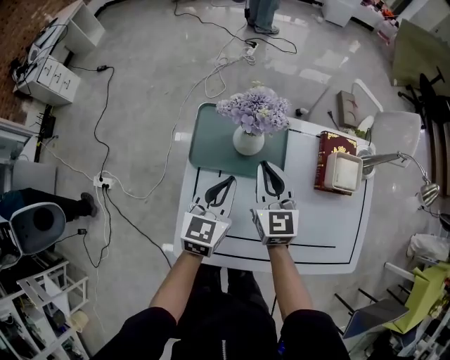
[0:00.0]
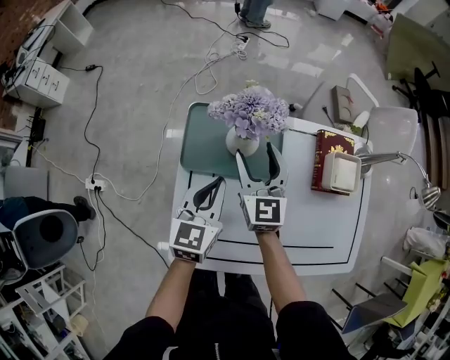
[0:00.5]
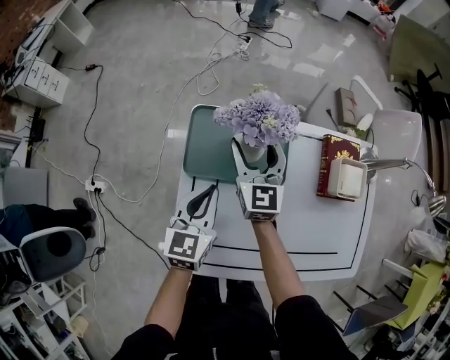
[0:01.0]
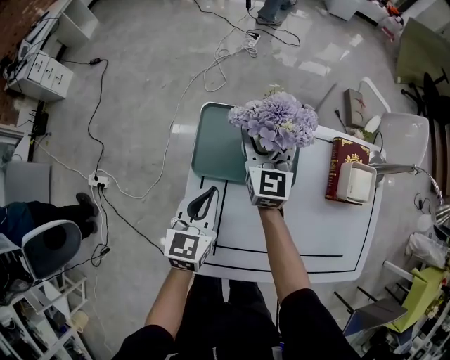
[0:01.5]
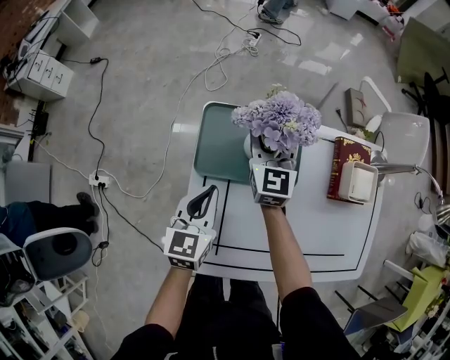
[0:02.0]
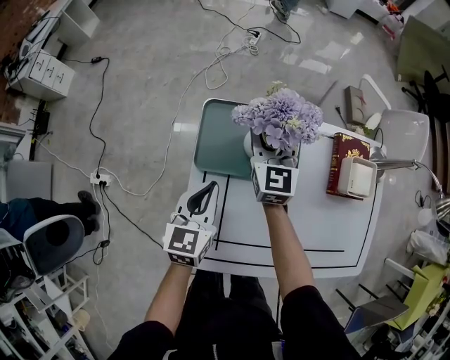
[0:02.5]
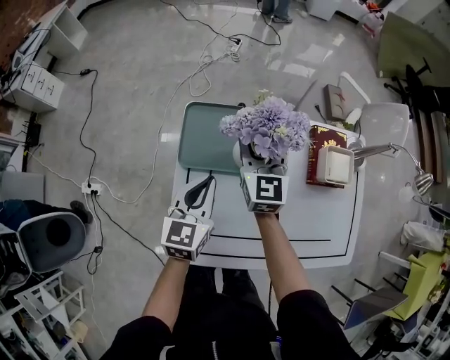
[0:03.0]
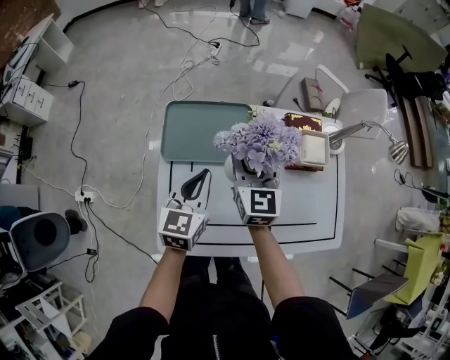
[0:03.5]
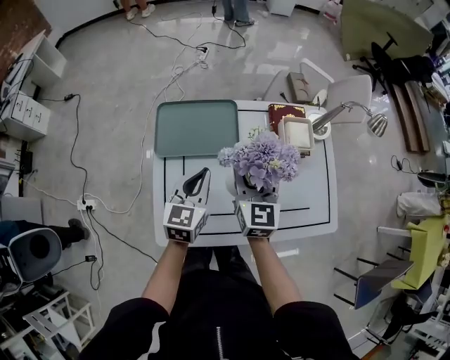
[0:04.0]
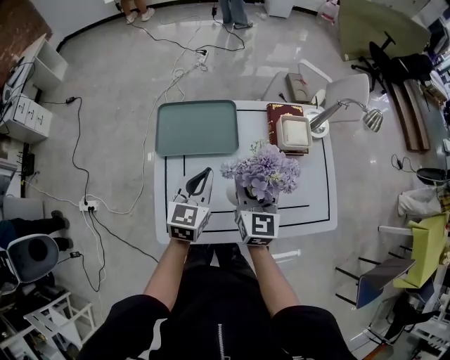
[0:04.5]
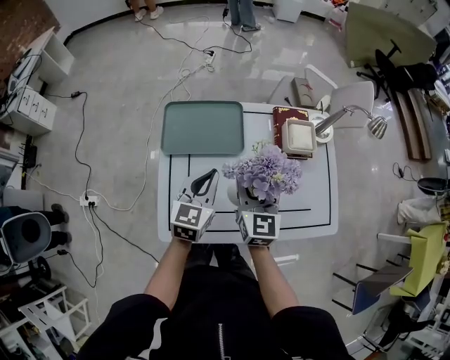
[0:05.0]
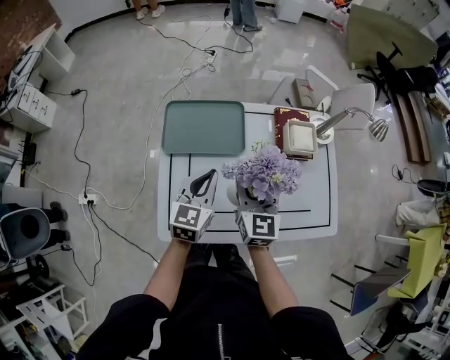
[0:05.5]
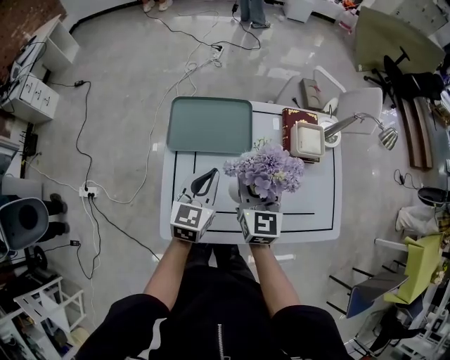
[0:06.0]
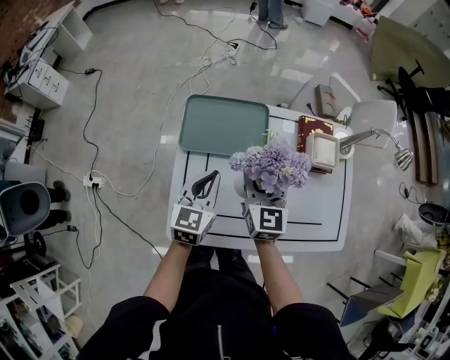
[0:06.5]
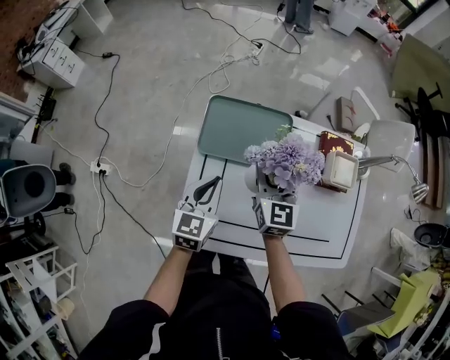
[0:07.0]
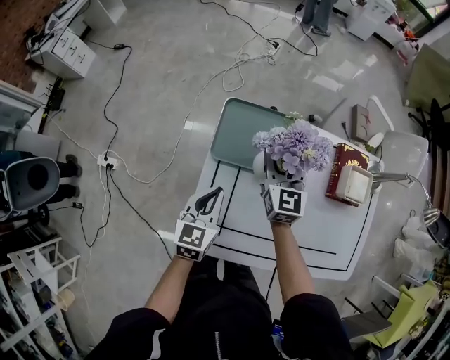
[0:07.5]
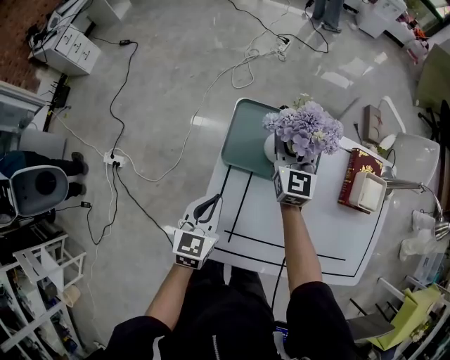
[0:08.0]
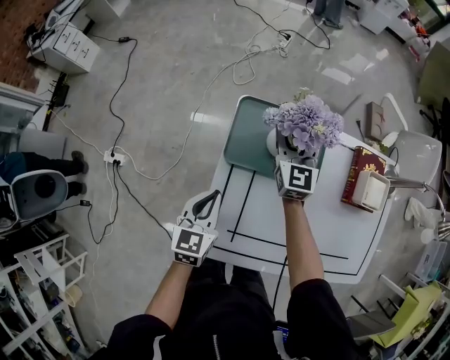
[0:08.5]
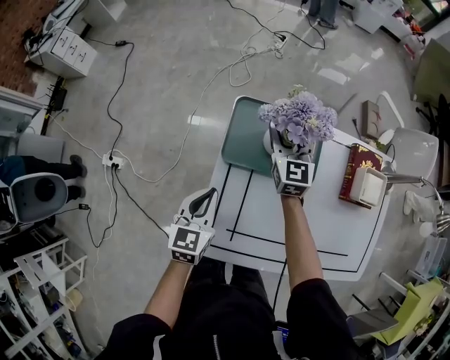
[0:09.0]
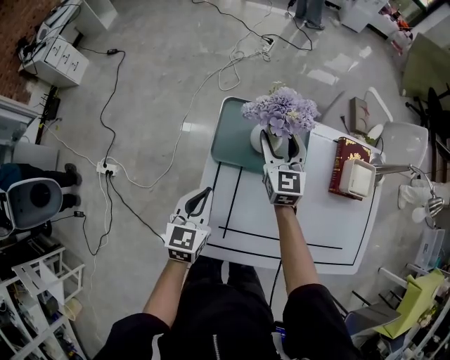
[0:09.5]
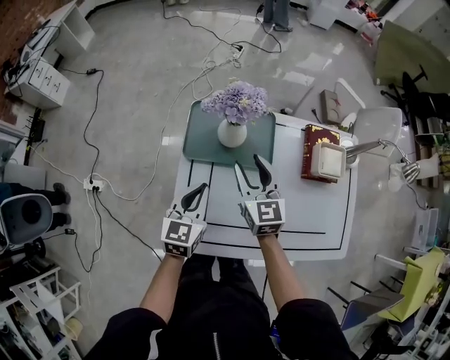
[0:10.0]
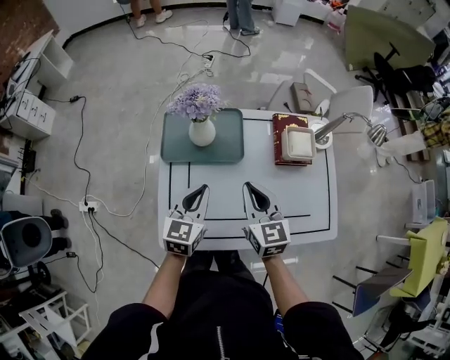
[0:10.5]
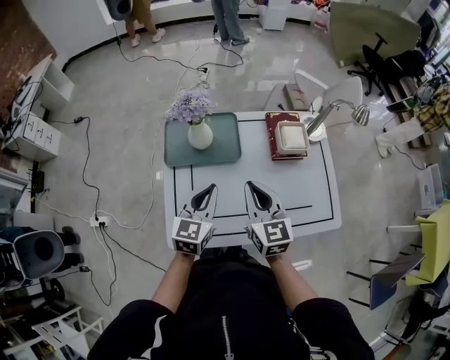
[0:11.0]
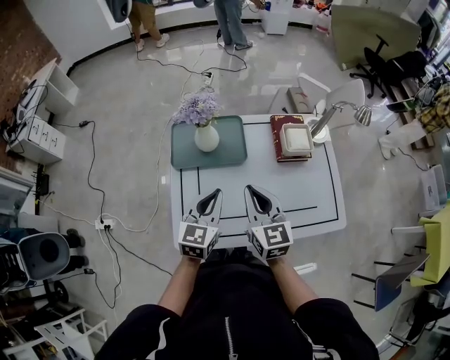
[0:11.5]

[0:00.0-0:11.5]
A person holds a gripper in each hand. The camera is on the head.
0:00.0 to 0:02.0: The right gripper heads forward and to the left, covering about 15 cm, and opens. The left gripper goes approximately 10 cm to the left.
0:02.0 to 0:04.0: The left gripper is displaced to the right, upward and backward by about 15 cm, while the right gripper is displaced backward, to the right and upward by approximately 30 cm.
0:04.0 to 0:06.0: There are only small adjustments of the grippers.
0:06.0 to 0:07.5: The right gripper is displaced forward and to the left by some 20 cm. The left gripper is displaced to the left and downward by about 15 cm.
0:09.5 to 0:11.5: The right gripper is displaced backward, to the right and upward by approximately 30 cm, and closes up. The left gripper shifts roughly 20 cm to the right and upward, and rotates about 20 degrees.

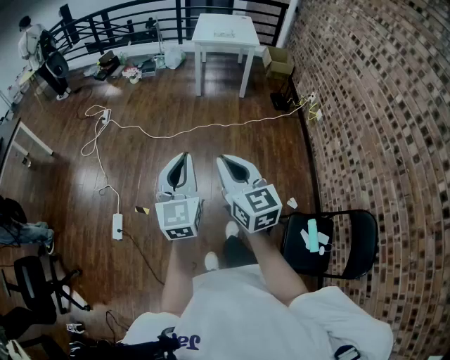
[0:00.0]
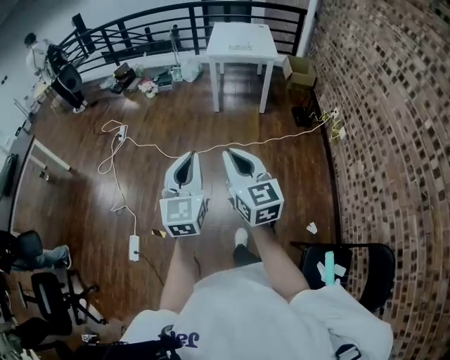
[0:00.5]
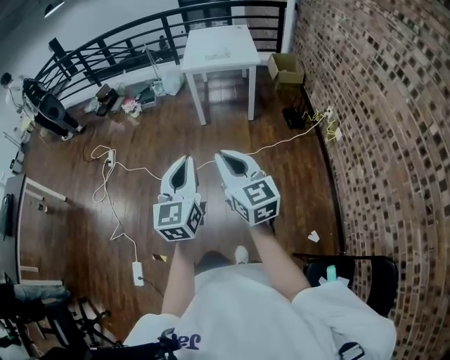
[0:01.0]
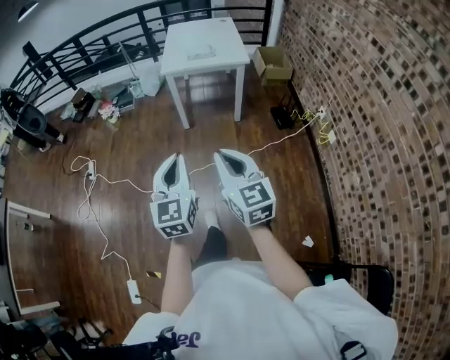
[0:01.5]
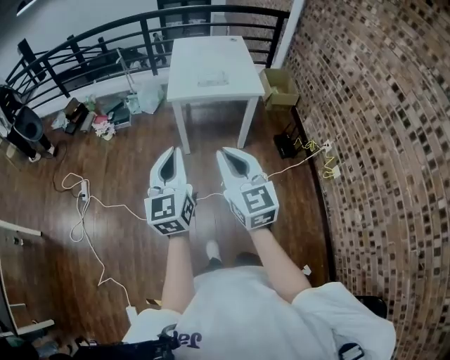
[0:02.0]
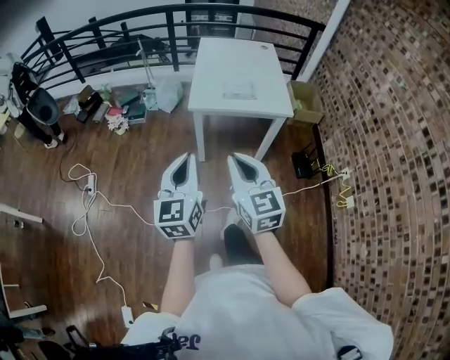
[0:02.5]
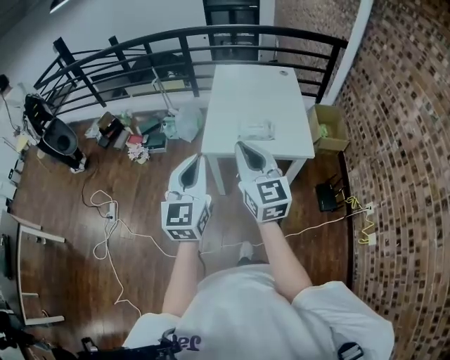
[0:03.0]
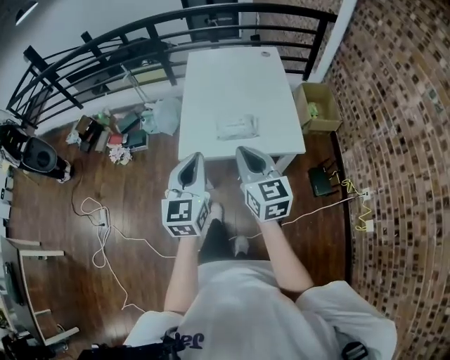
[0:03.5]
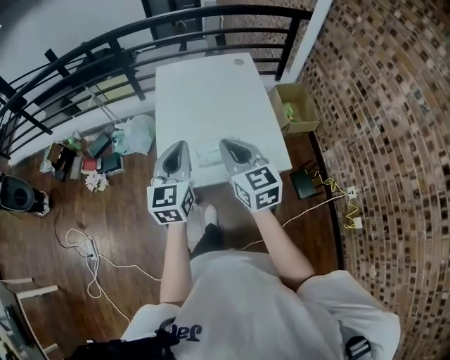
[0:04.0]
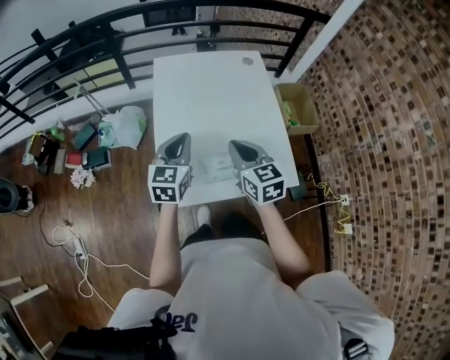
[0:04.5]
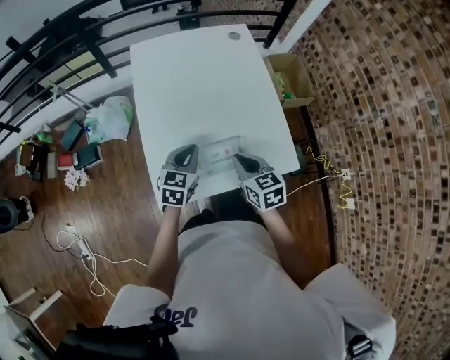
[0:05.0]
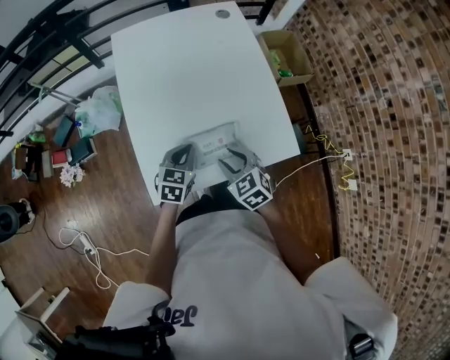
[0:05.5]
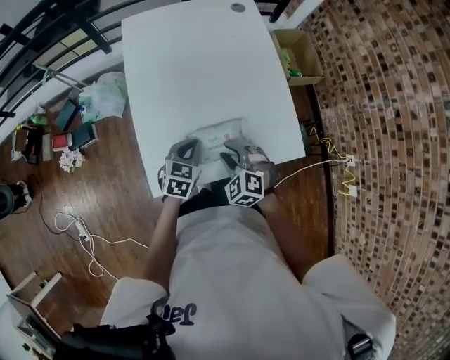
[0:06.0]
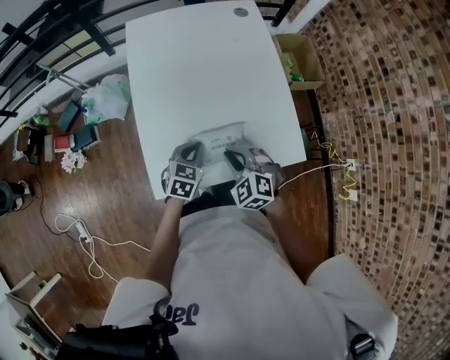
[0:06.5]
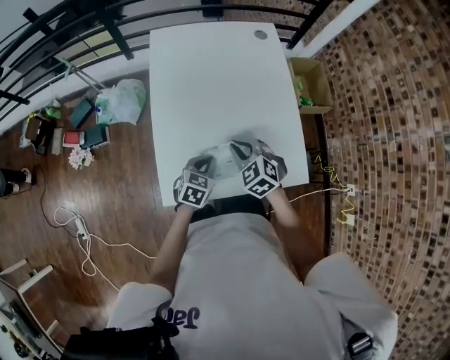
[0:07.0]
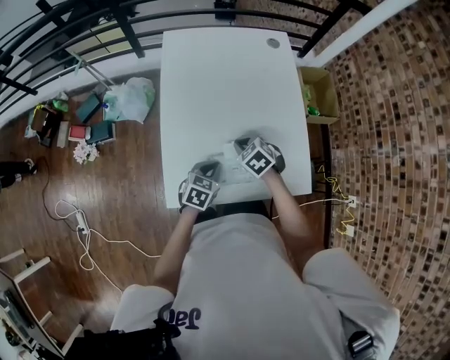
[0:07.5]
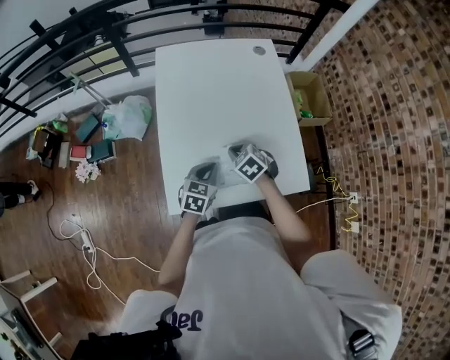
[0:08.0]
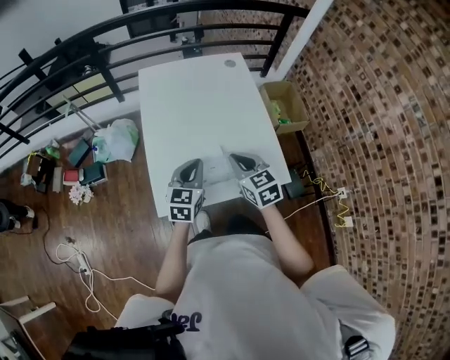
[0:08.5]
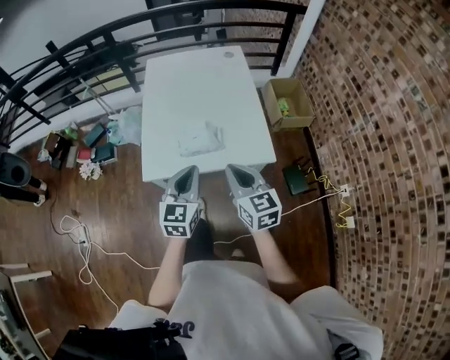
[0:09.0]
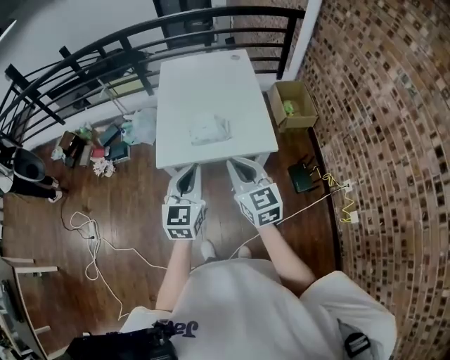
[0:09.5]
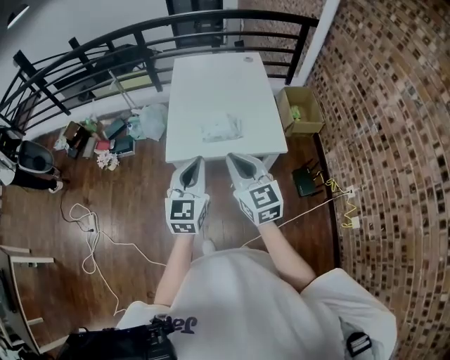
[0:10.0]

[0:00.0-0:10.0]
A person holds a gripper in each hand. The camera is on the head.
0:00.0 to 0:02.0: Both grippers are carried forward, some 80 cm.
0:02.0 to 0:04.0: The two grippers travel together, forward, about 60 cm.
0:04.0 to 0:06.0: The two grippers go approximately 30 cm downward. The left gripper points its fingers roughly 30 degrees further downward. The right gripper angles its fingers downward, by approximately 40 degrees, and opens.
0:06.0 to 0:08.0: The right gripper heads forward, covering approximately 10 cm, swivels about 20 degrees, and closes.
0:08.0 to 0:10.0: Both grippers travel together backward and upward, approximately 40 cm. The left gripper turns by some 40 degrees. Meanwhile the right gripper angles its fingers upward, by roughly 50 degrees.

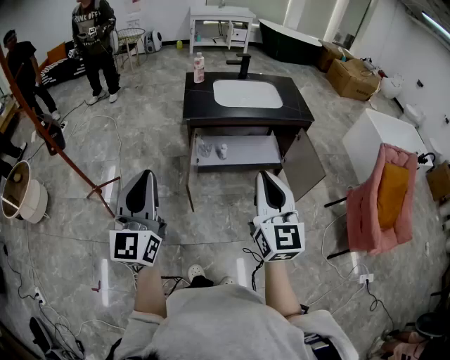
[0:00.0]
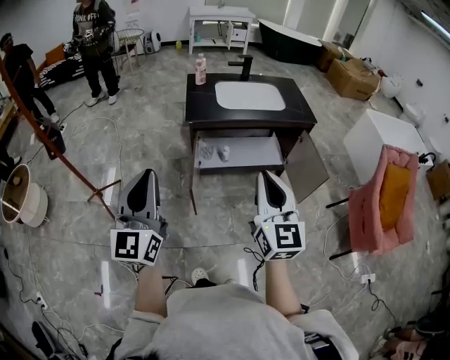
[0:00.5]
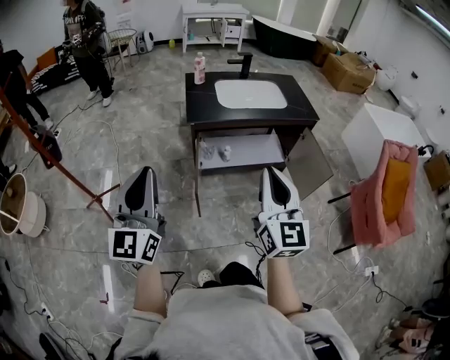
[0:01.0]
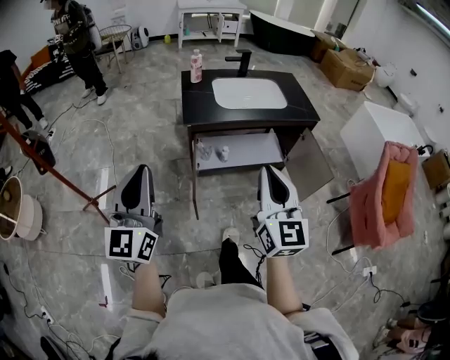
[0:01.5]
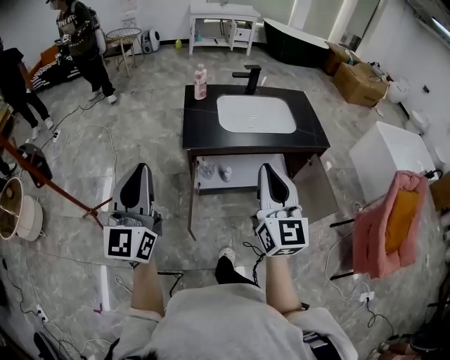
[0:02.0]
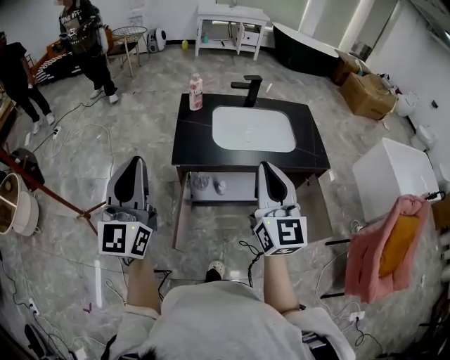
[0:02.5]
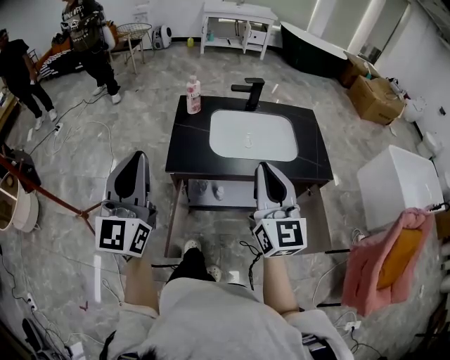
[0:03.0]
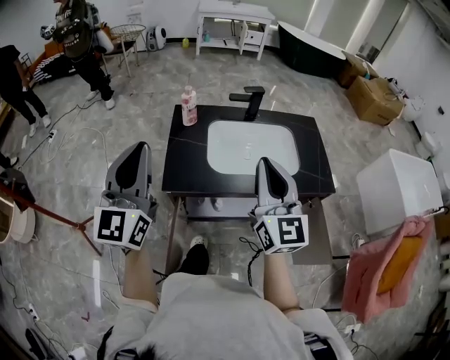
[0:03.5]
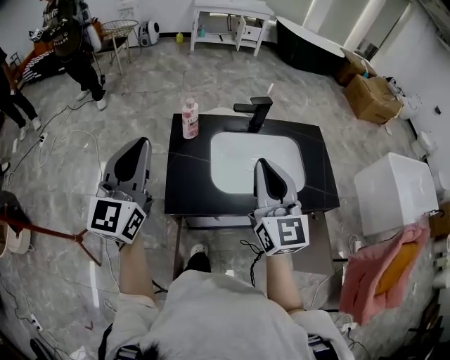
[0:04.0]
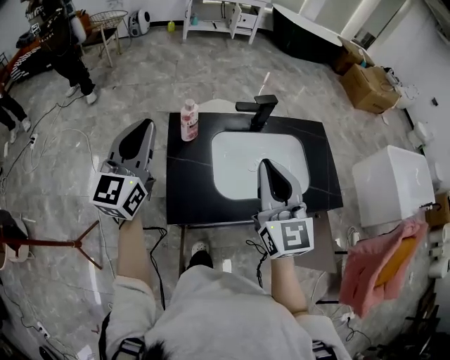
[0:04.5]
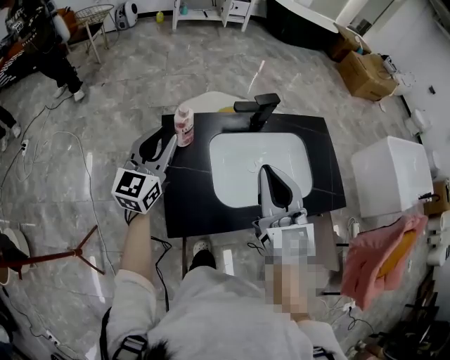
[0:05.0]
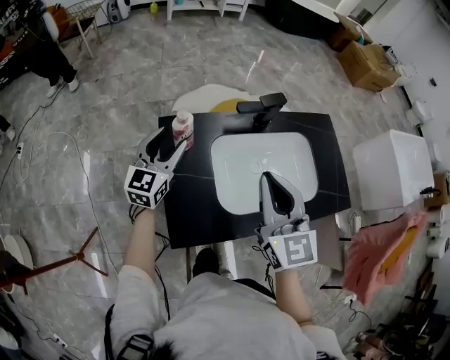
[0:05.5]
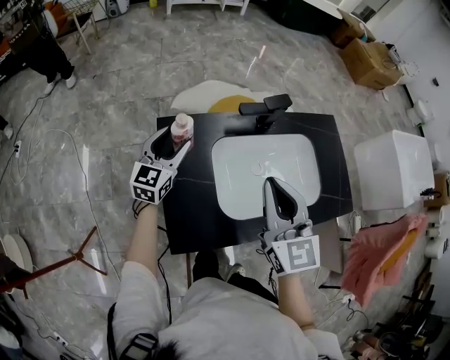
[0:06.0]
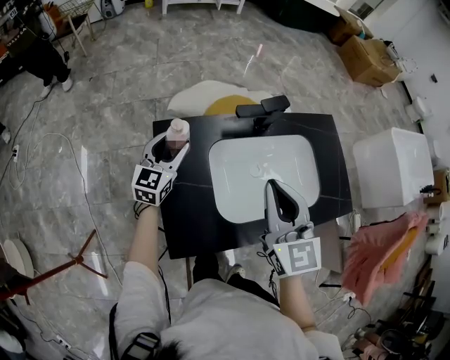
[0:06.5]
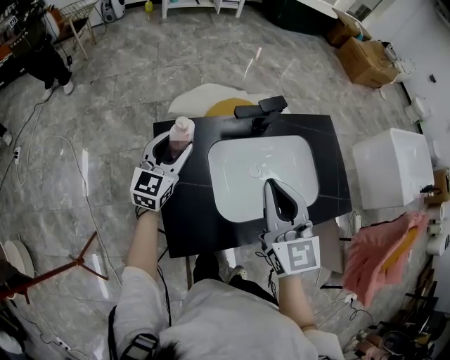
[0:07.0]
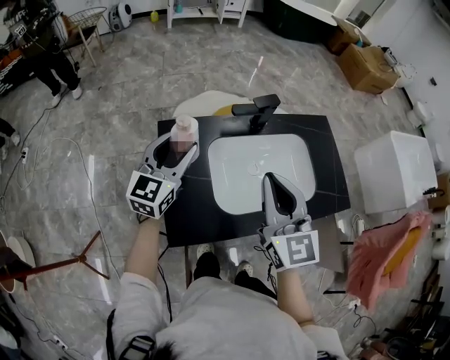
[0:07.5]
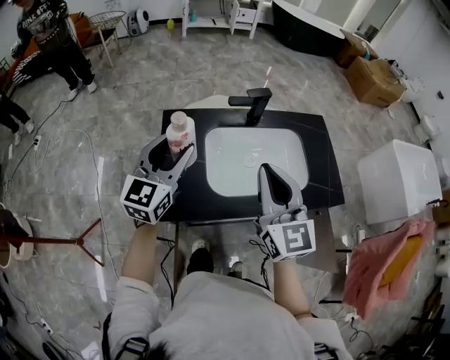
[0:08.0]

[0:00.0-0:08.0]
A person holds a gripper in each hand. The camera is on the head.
0:00.0 to 0:02.0: The two grippers go approximately 25 cm forward.
0:02.0 to 0:04.0: The grippers both shift forward by approximately 35 cm.
0:04.0 to 0:06.0: The right gripper is displaced forward and downward by roughly 15 cm, while the left gripper heads forward and downward, covering approximately 40 cm, rotates roughly 30 degrees, and opens its fingers.
0:06.0 to 0:08.0: The left gripper shifts about 25 cm backward, upward and to the right; the right gripper goes about 15 cm backward, to the right and upward.
